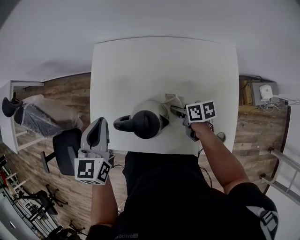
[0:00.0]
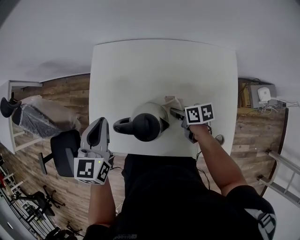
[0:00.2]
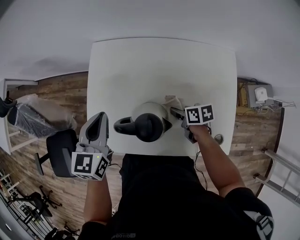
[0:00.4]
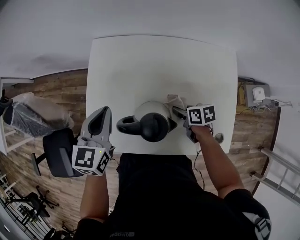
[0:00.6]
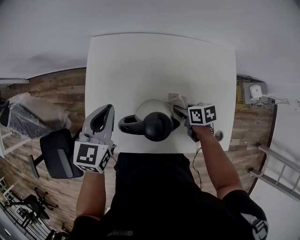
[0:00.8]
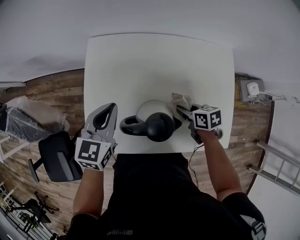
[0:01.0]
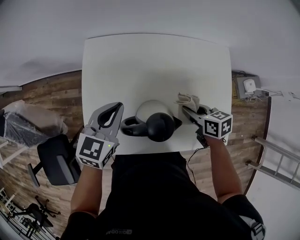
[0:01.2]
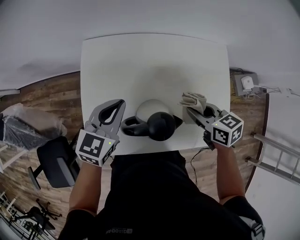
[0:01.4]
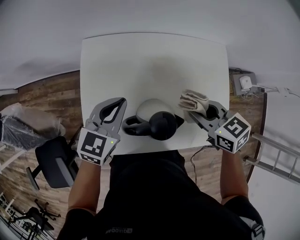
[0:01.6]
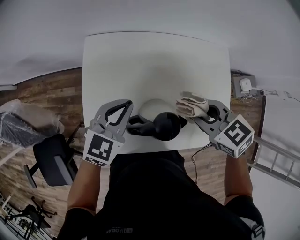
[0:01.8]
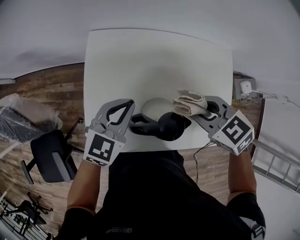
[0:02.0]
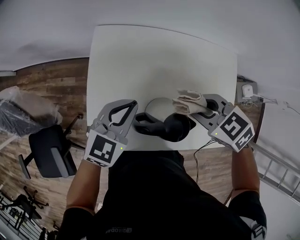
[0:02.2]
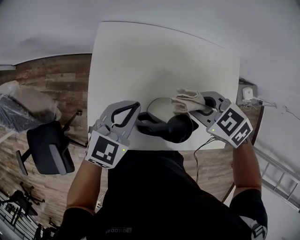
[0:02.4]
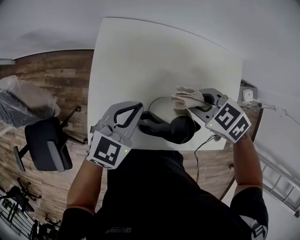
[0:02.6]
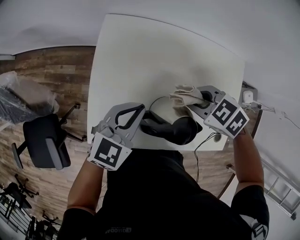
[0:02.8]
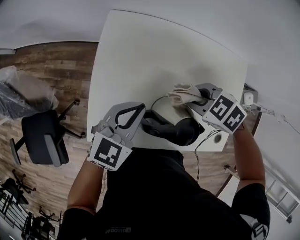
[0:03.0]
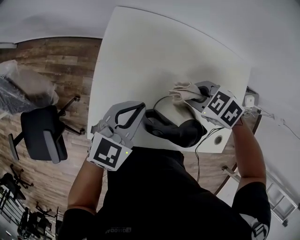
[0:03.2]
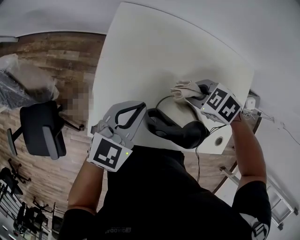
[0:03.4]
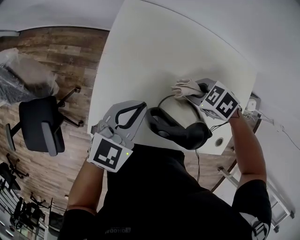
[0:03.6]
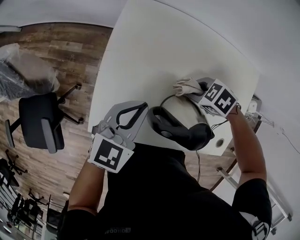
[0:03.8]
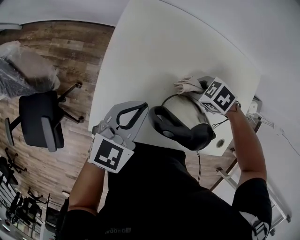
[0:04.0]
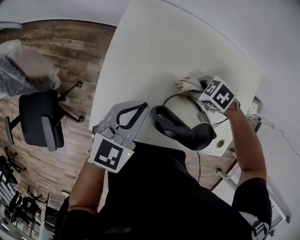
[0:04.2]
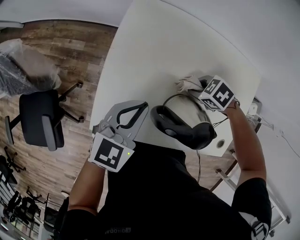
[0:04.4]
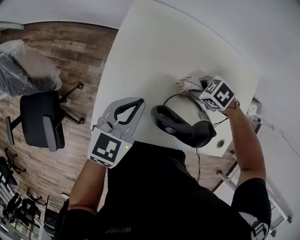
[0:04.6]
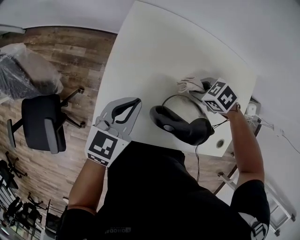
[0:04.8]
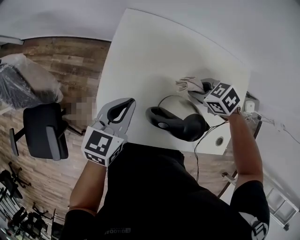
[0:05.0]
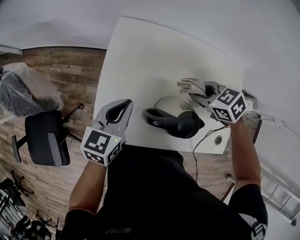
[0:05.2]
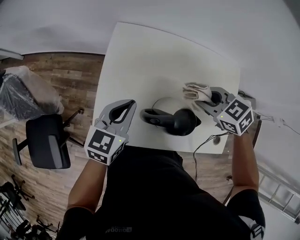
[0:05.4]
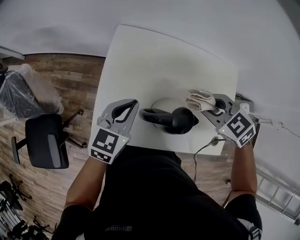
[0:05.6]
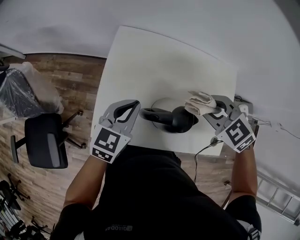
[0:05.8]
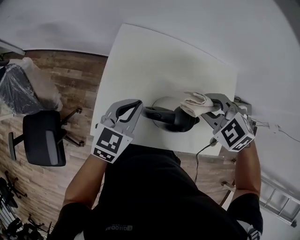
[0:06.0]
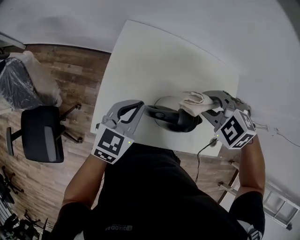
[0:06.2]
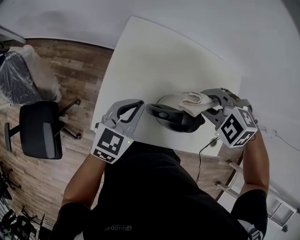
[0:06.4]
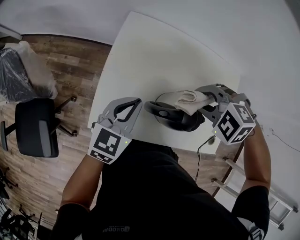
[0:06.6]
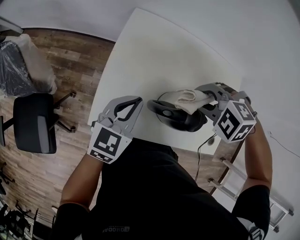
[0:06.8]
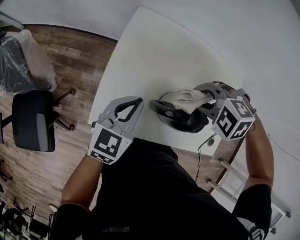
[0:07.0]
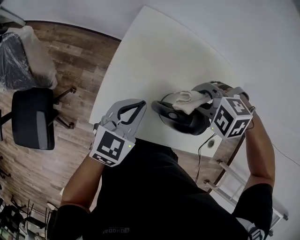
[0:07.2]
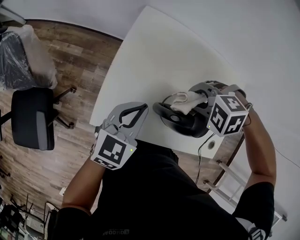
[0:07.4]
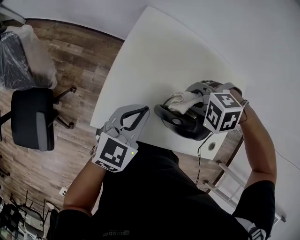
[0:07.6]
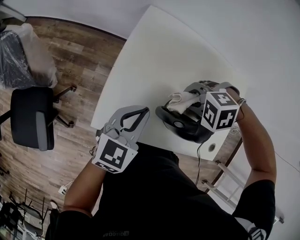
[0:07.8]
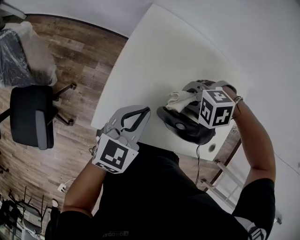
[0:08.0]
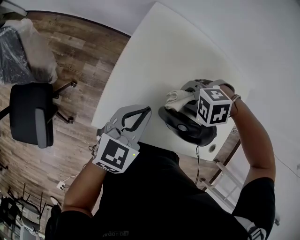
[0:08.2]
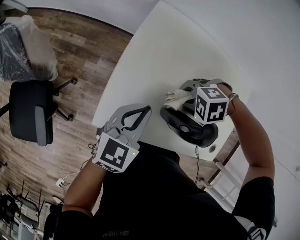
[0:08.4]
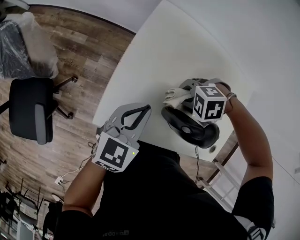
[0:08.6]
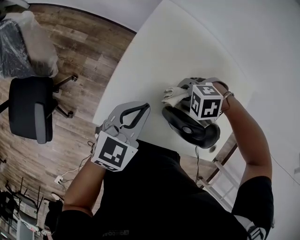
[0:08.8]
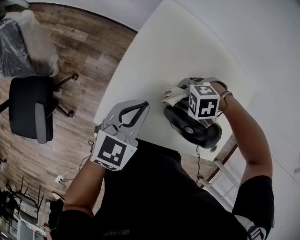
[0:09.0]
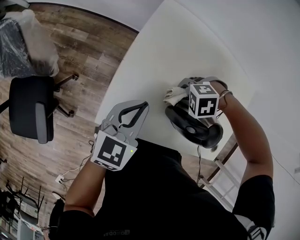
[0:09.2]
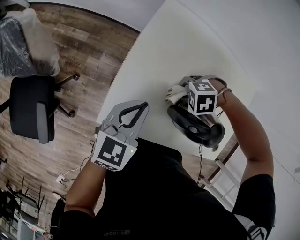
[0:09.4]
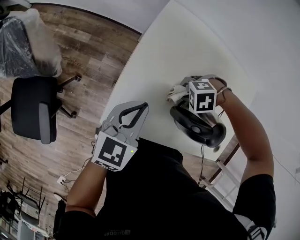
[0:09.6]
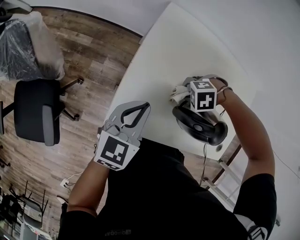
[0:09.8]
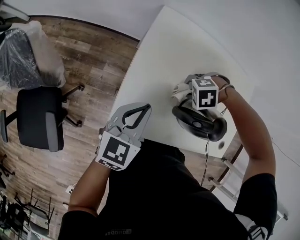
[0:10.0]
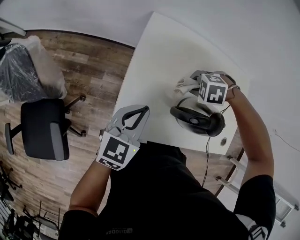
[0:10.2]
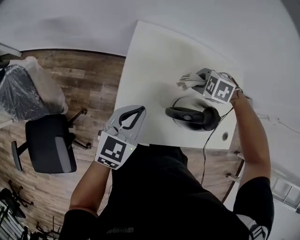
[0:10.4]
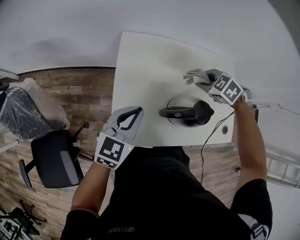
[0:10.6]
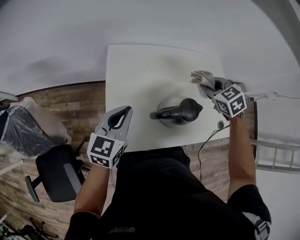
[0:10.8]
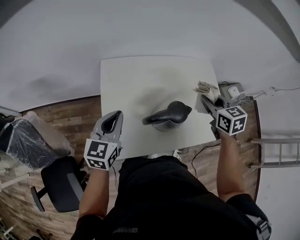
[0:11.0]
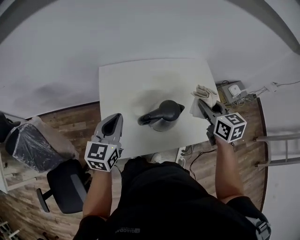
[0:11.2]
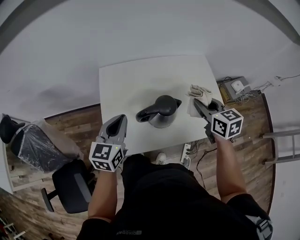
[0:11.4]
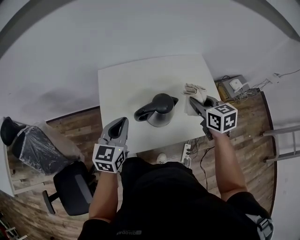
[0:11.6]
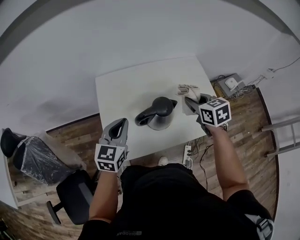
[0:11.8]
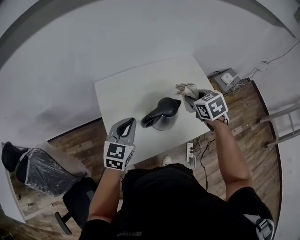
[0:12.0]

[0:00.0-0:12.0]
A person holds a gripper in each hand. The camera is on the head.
0:00.0 to 0:01.6: The right gripper heads upward, covering some 20 cm, and changes its angle by approximately 40 degrees, while the left gripper moves some 10 cm, and changes its angle by about 30 degrees.
0:01.6 to 0:03.0: The right gripper moves about 15 cm, and rotates about 50 degrees.
0:03.0 to 0:04.4: The right gripper moves downward, some 10 cm.
0:04.4 to 0:06.0: The right gripper heads upward, covering roughly 25 cm, and rotates approximately 40 degrees; the left gripper heads upward, covering about 5 cm.
0:06.0 to 0:07.6: The left gripper shifts by about 5 cm. Meanwhile the right gripper travels downward by about 10 cm, and swivels roughly 40 degrees.
0:07.6 to 0:09.0: The right gripper heads downward, covering roughly 10 cm.
0:09.0 to 0:10.4: The right gripper is displaced upward by some 10 cm, and turns by approximately 40 degrees.
0:10.4 to 0:12.0: The left gripper shifts by approximately 10 cm. Meanwhile the right gripper changes place by about 25 cm, and twists roughly 70 degrees clockwise, seen from behind.

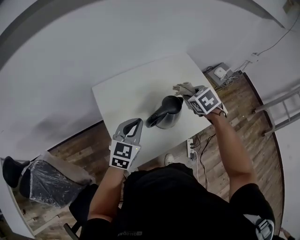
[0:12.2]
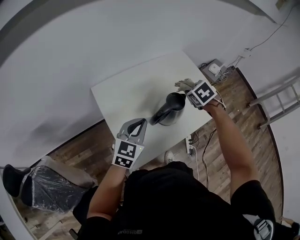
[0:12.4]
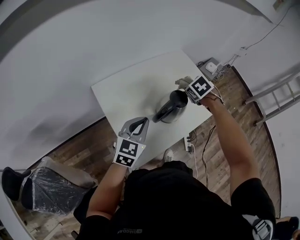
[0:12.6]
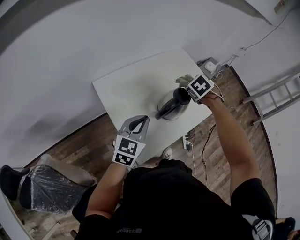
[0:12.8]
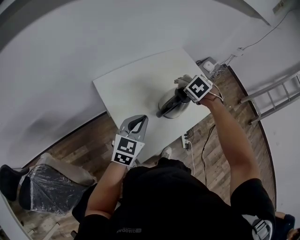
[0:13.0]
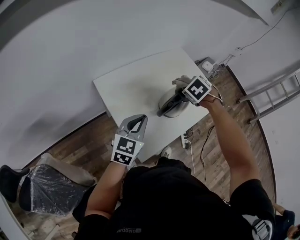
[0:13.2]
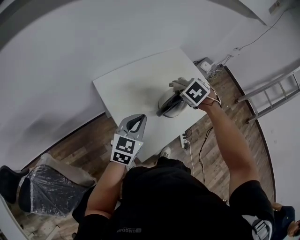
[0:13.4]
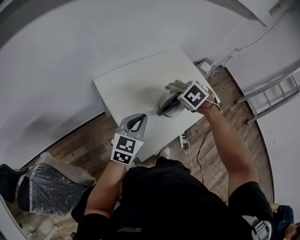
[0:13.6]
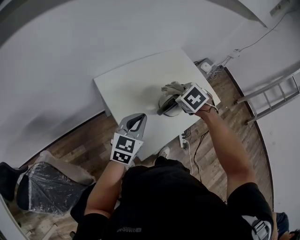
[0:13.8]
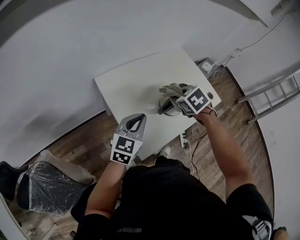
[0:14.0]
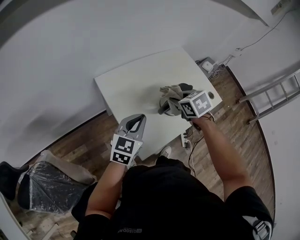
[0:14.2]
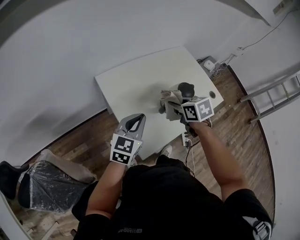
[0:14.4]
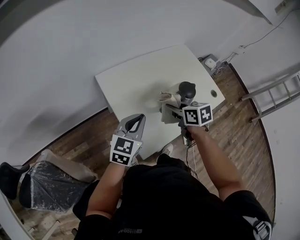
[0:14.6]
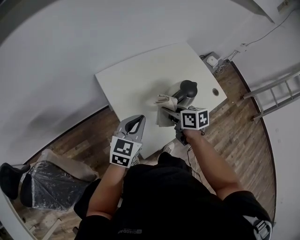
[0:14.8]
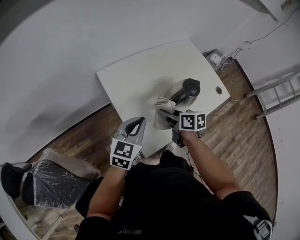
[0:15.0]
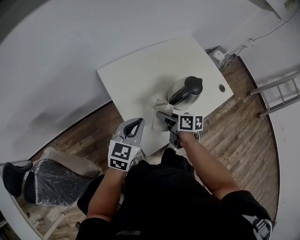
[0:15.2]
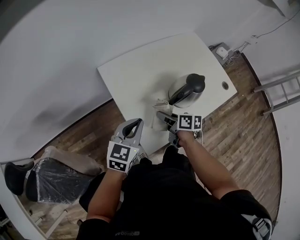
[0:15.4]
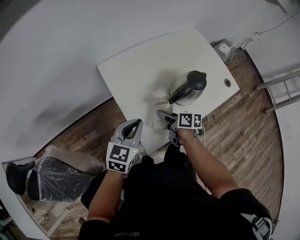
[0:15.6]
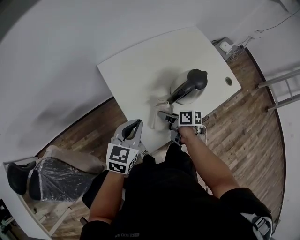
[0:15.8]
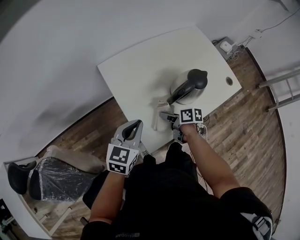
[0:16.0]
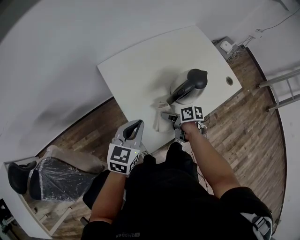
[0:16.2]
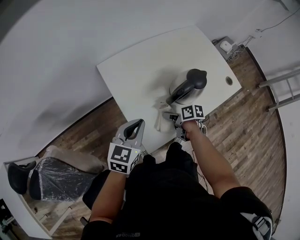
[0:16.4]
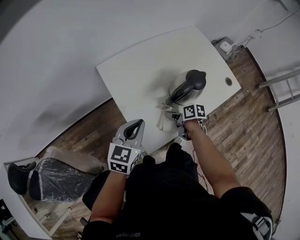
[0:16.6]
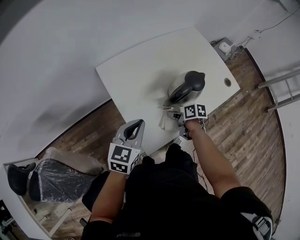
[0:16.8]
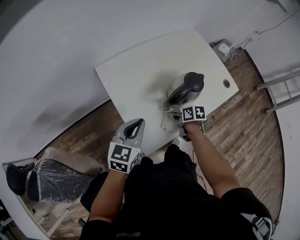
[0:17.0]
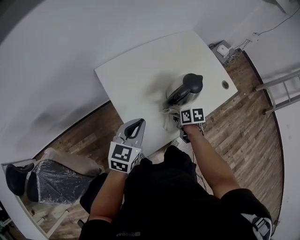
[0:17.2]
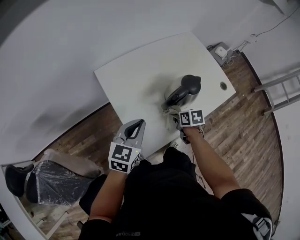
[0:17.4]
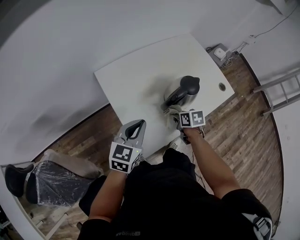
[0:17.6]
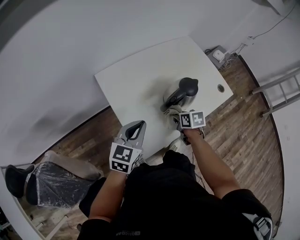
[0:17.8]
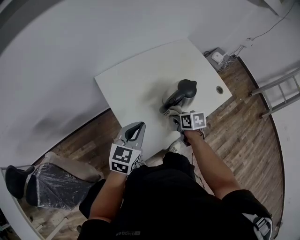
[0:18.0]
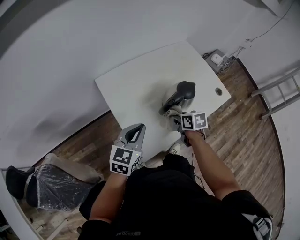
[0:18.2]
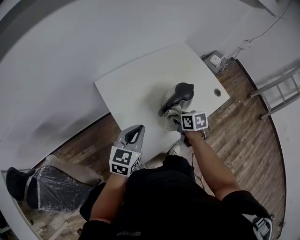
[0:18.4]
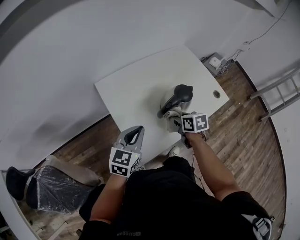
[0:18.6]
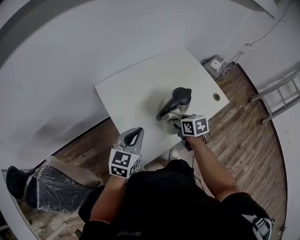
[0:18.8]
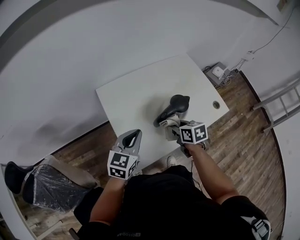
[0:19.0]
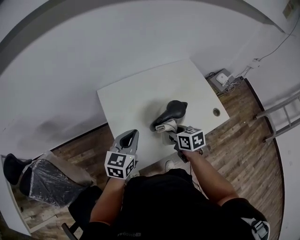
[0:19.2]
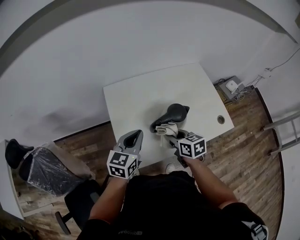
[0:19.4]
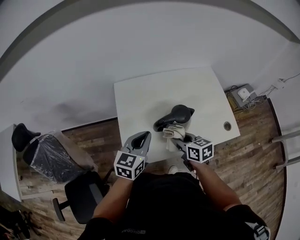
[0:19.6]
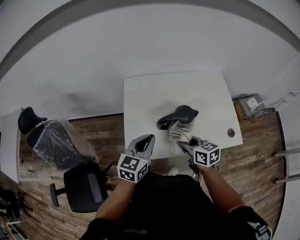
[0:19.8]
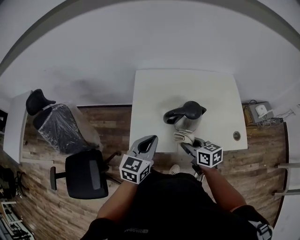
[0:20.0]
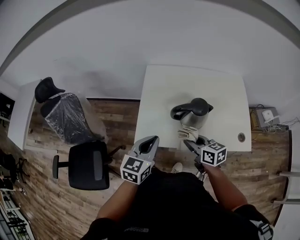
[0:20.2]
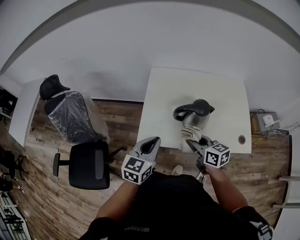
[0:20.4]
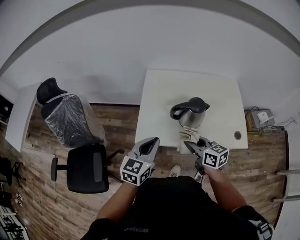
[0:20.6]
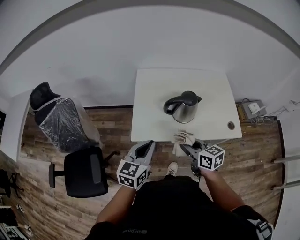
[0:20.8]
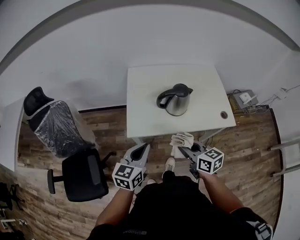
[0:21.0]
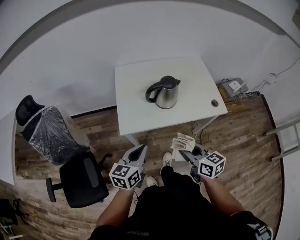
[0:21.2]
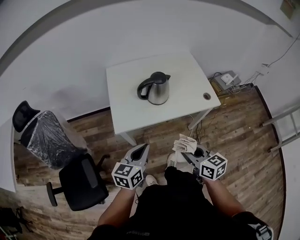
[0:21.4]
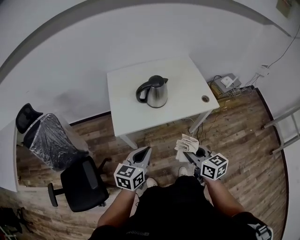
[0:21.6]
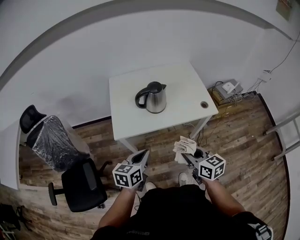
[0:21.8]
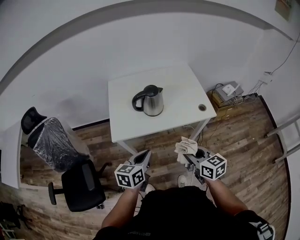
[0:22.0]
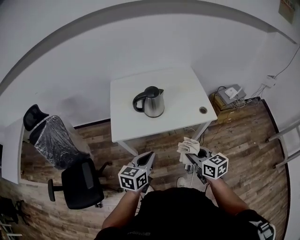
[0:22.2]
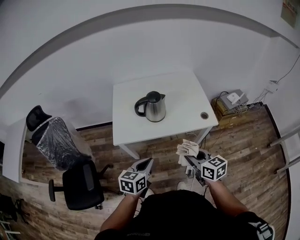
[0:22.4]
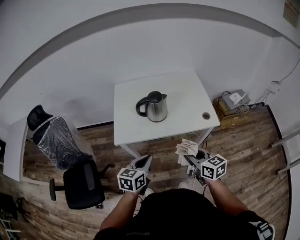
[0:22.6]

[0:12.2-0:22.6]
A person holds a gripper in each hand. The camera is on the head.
0:12.2 to 0:13.6: The right gripper shifts by some 10 cm, and changes its angle by roughly 20 degrees, while the left gripper shifts by roughly 10 cm.
0:13.6 to 0:15.2: The left gripper changes place by roughly 5 cm. Meanwhile the right gripper shifts about 15 cm downward, and angles its fingers upward, by about 30 degrees.
0:15.2 to 0:16.6: The right gripper moves downward and to the right, some 10 cm.
0:16.6 to 0:18.2: The right gripper goes some 10 cm upward, and rotates about 30 degrees.
0:18.2 to 0:19.6: The right gripper shifts roughly 10 cm upward, and changes its angle by approximately 30 degrees, while the left gripper goes approximately 10 cm to the right, and turns by approximately 20 degrees.
0:19.6 to 0:21.2: The two grippers go about 25 cm backward.
0:21.2 to 0:22.6: The grippers both shift to the right by some 10 cm.

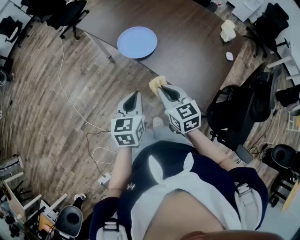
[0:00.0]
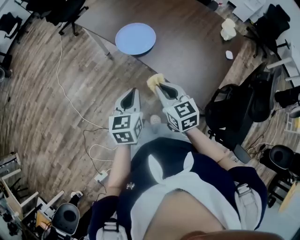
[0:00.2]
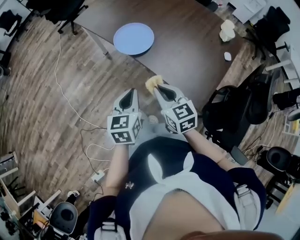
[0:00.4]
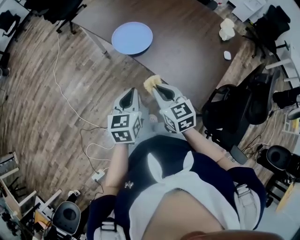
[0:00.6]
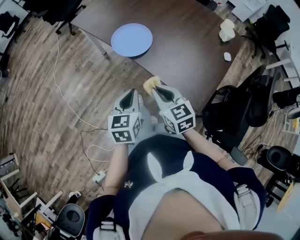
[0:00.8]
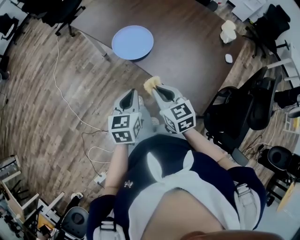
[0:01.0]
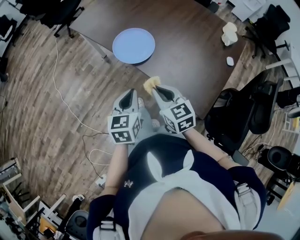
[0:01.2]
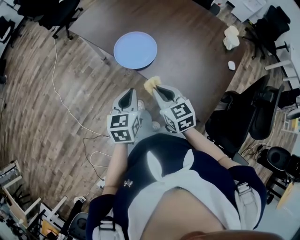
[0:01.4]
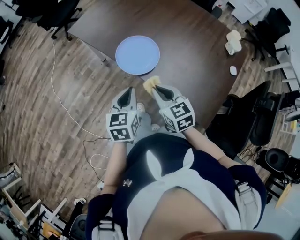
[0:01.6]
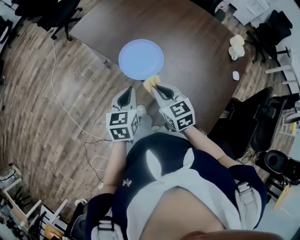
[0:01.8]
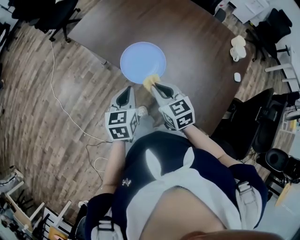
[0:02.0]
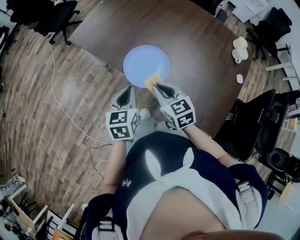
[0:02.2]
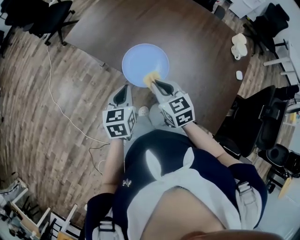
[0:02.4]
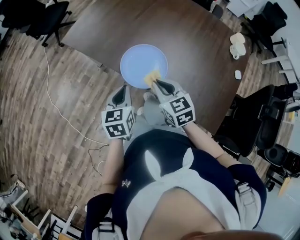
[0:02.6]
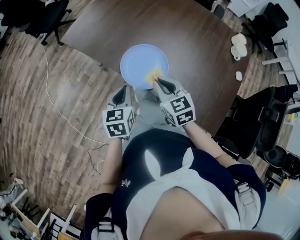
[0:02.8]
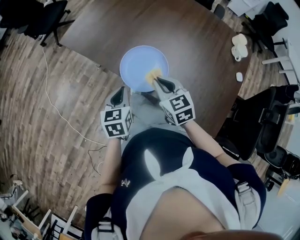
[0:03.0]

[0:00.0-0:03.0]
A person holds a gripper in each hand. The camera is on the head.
0:00.0 to 0:01.6: The two grippers go some 20 cm forward.
0:01.6 to 0:03.0: The left gripper travels forward, downward and to the left by roughly 20 cm, while the right gripper shifts about 15 cm forward.
